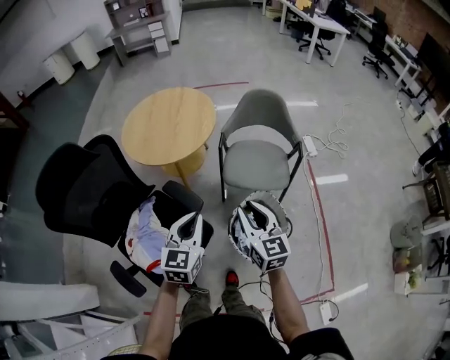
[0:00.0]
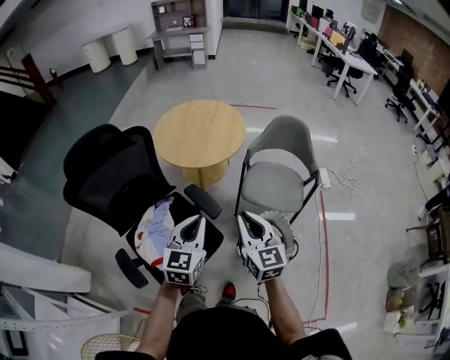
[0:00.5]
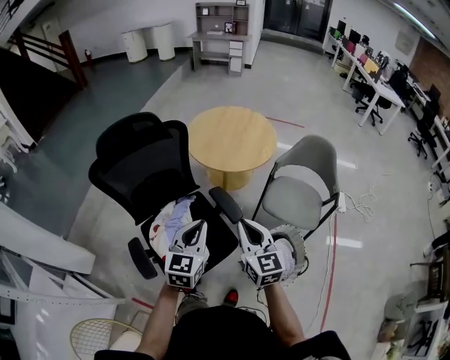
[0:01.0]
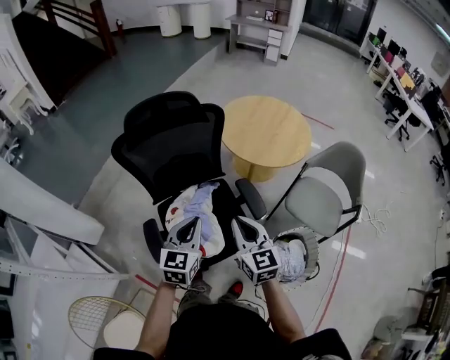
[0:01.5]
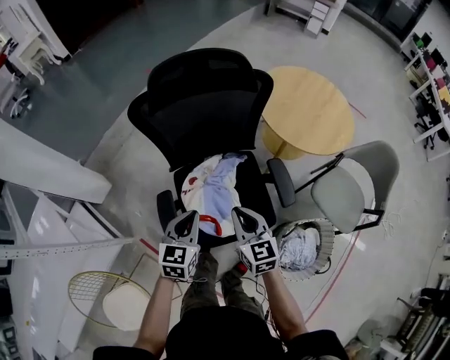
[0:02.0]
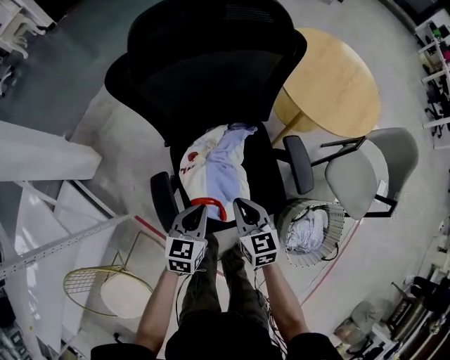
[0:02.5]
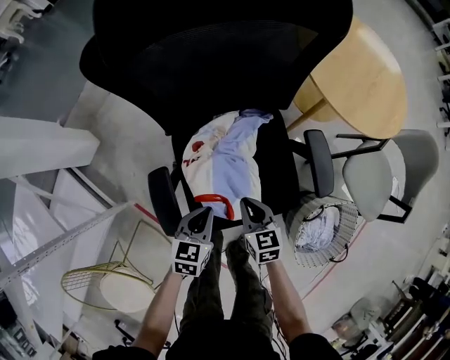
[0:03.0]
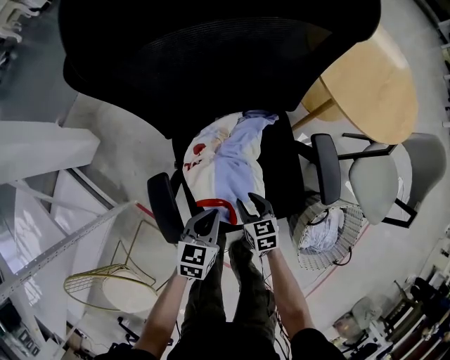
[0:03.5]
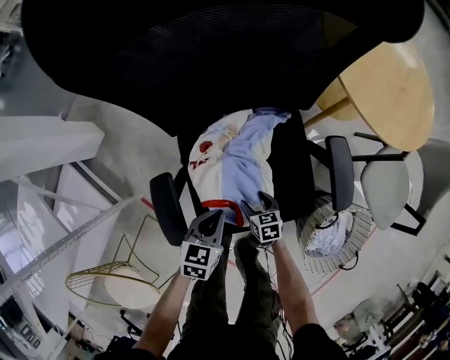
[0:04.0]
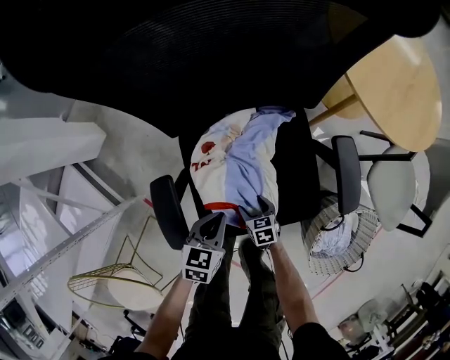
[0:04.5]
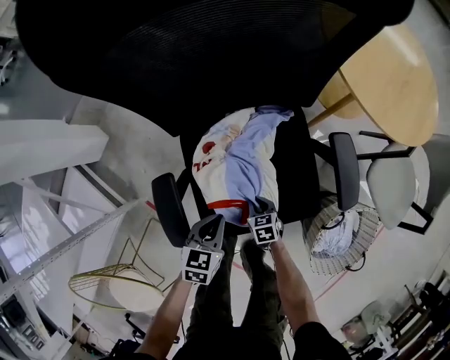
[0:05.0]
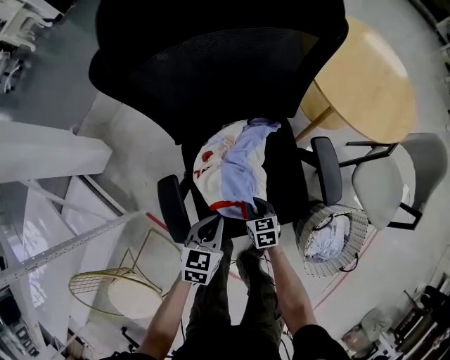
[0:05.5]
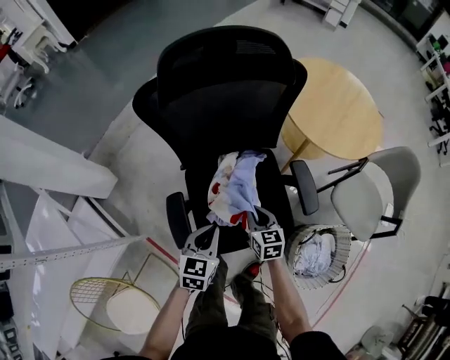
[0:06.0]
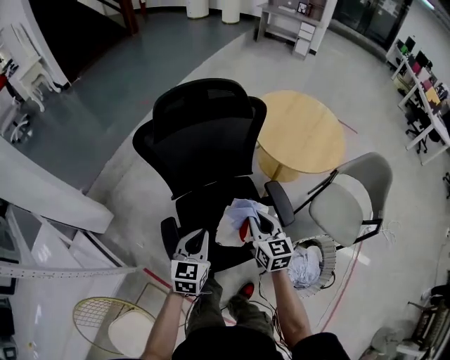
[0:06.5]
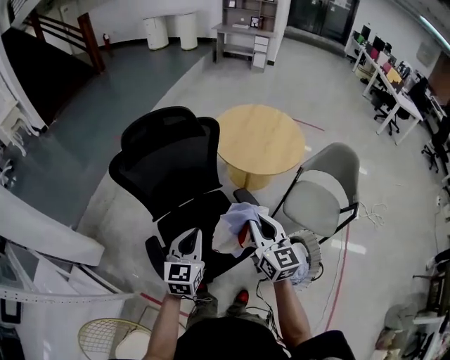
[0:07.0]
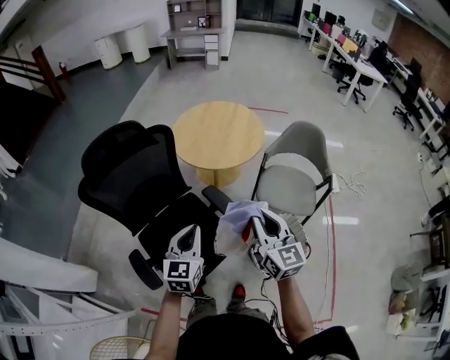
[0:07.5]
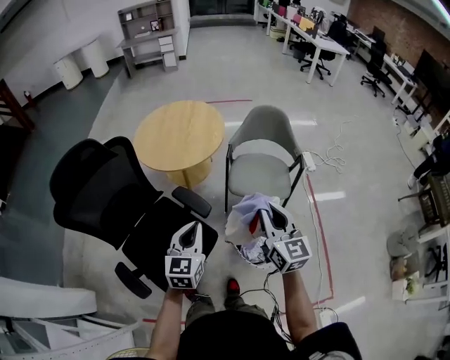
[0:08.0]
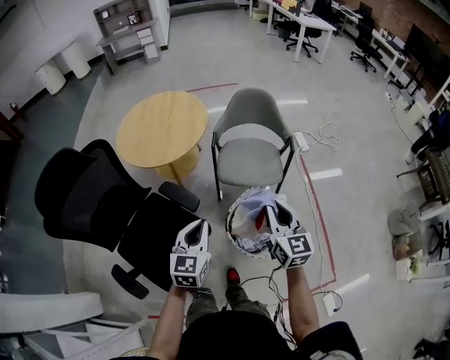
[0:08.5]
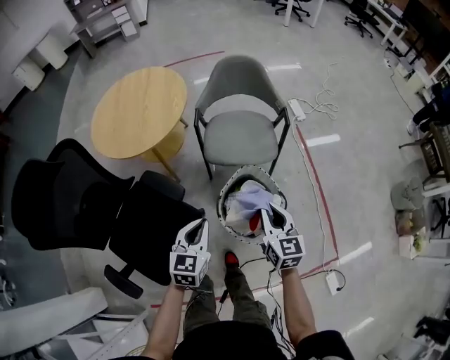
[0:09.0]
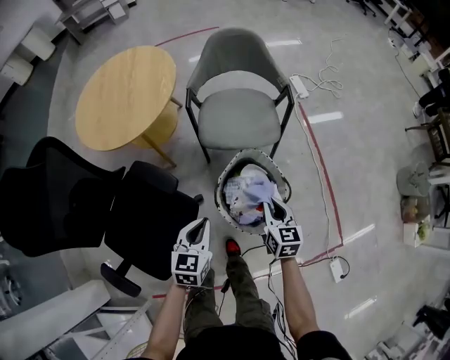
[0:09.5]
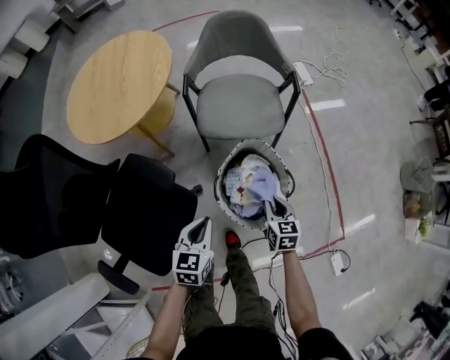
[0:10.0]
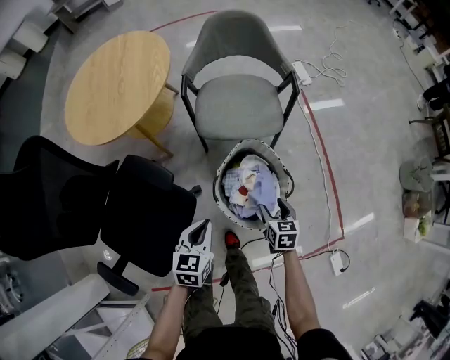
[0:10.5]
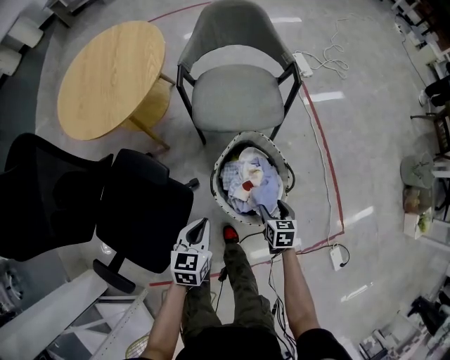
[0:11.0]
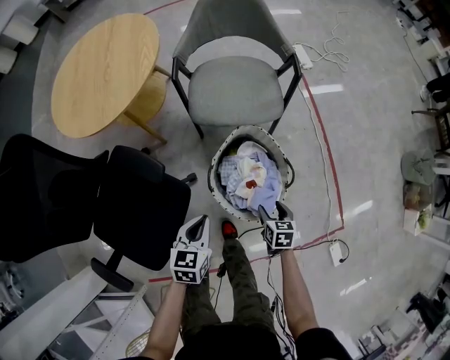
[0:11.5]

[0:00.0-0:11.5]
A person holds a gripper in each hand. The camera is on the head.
0:00.0 to 0:02.0: The right gripper ends up roughly 40 cm from where it was, and rotates about 40 degrees, while the left gripper shifts by approximately 40 cm, and swivels approximately 40 degrees.
0:02.0 to 0:04.0: The right gripper heads downward, covering roughly 50 cm, points its fingers some 30 degrees further downward, and opens. The left gripper shifts roughly 30 cm downward, and turns by some 20 degrees.
0:04.0 to 0:06.0: The grippers both shift upward by about 20 cm. The right gripper changes its angle by some 30 degrees, and closes.
0:06.0 to 0:07.5: The left gripper shifts approximately 30 cm upward and to the right, and turns by about 30 degrees. Meanwhile the right gripper goes roughly 50 cm upward and to the right, and angles its fingers upward, by some 30 degrees.
0:07.5 to 0:09.5: The right gripper heads downward, covering roughly 35 cm, and rotates about 40 degrees. The left gripper moves roughly 35 cm, and changes its angle by some 30 degrees.
0:09.5 to 0:11.5: The left gripper travels downward by roughly 10 cm. Meanwhile the right gripper is displaced downward by roughly 20 cm, changes its angle by roughly 30 degrees, and opens.

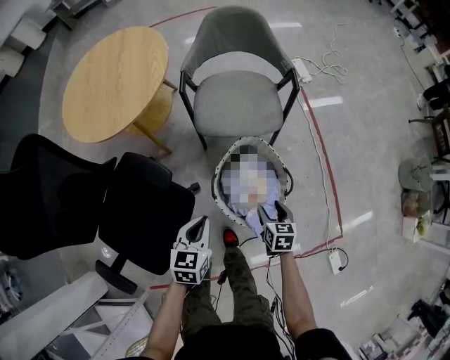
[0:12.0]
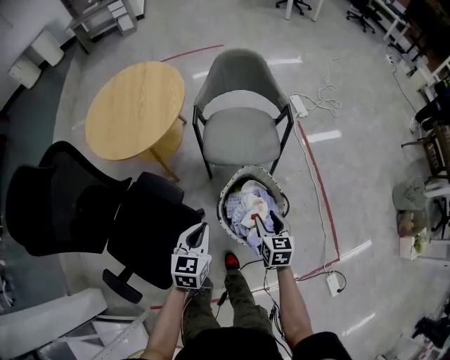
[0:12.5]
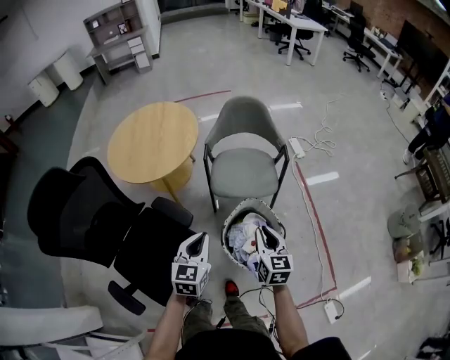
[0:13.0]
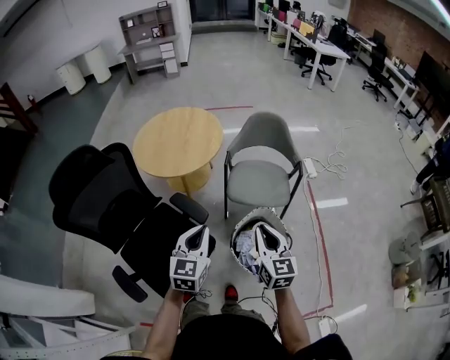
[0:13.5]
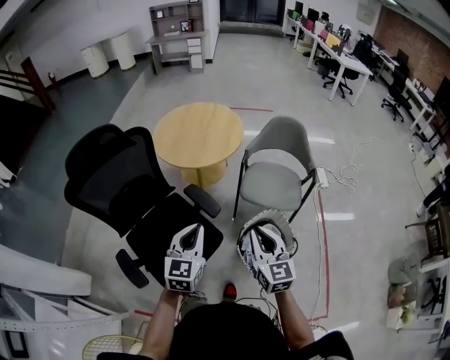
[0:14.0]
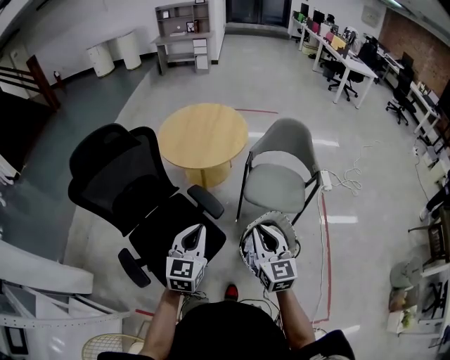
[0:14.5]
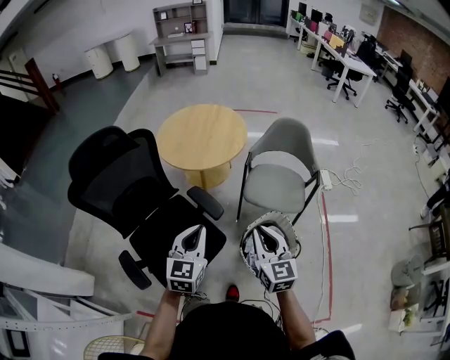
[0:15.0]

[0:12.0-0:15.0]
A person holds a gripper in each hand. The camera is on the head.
0:12.0 to 0:13.5: Both grippers move upward, approximately 30 cm. The left gripper changes its angle by roughly 30 degrees. Meanwhile the right gripper points its fingers about 40 degrees further upward, and closes its fingers.
0:13.5 to 0:15.0: Both grippers move to the left, about 5 cm.

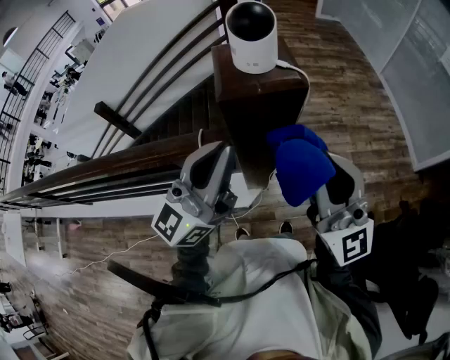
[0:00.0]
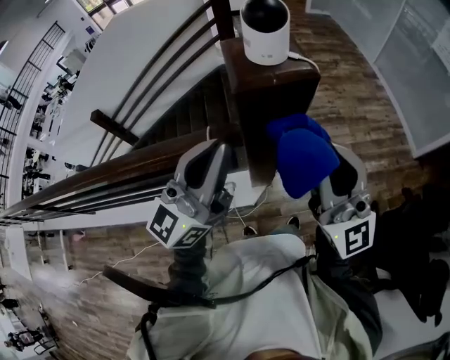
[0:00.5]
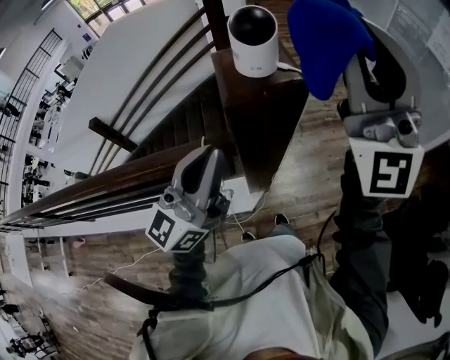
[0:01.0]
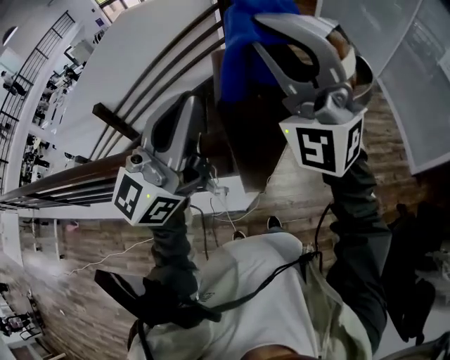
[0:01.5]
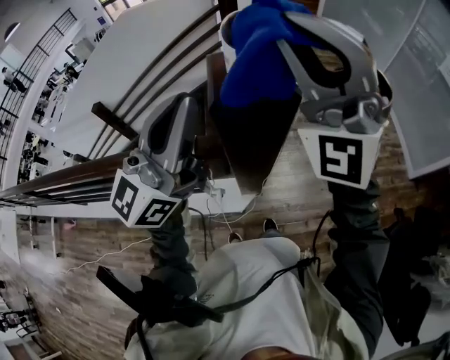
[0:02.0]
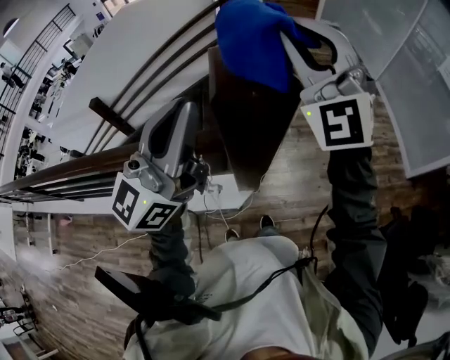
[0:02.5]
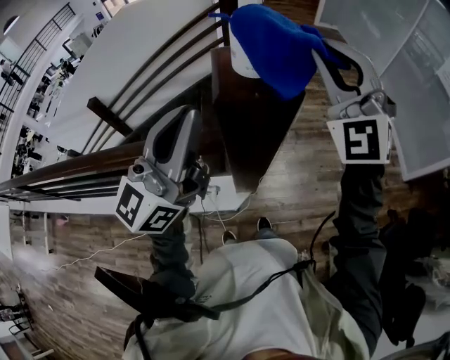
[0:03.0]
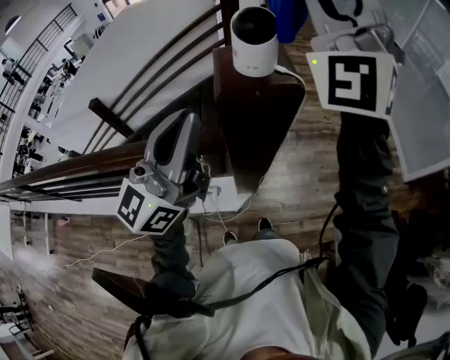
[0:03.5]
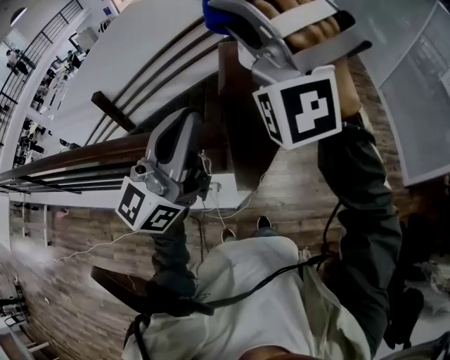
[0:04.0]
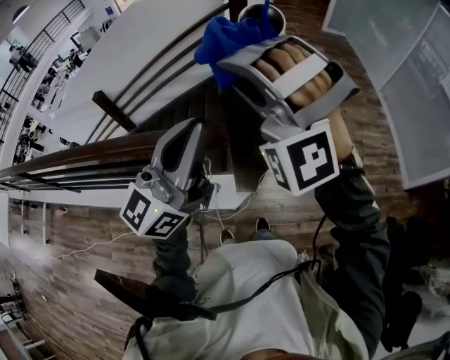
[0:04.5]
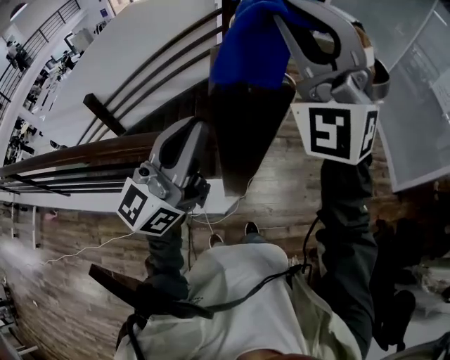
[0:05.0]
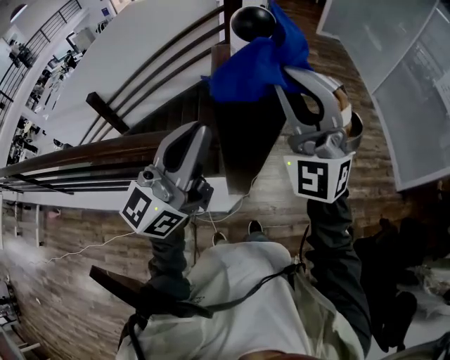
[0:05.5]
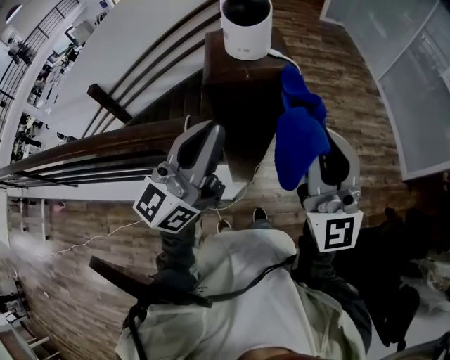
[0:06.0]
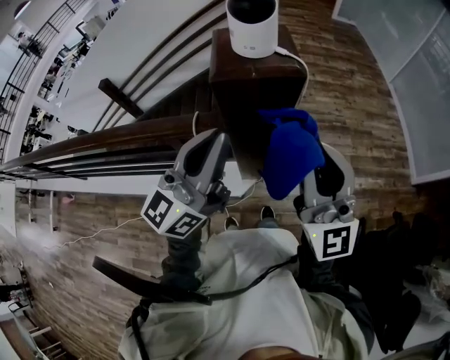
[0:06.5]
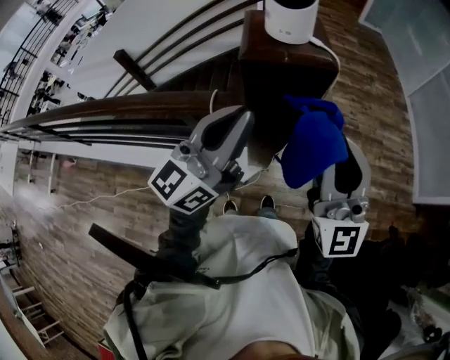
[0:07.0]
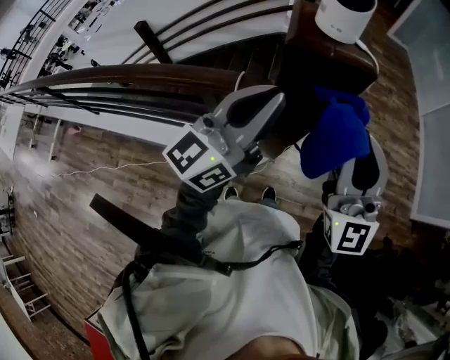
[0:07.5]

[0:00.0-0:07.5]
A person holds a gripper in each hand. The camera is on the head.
0:00.0 to 0:02.0: The right gripper moves upward, forward and to the left, roughly 20 cm, and rolls counterclockwise, seen from behind, by roughly 50 degrees; the left gripper goes some 10 cm upward.
0:02.0 to 0:04.0: The right gripper moves to the left, about 10 cm, and rotates some 40 degrees. The left gripper ends up approximately 5 cm from where it was.
0:04.0 to 0:05.5: The right gripper goes up and down, roughly 10 cm each way, reversing 2 times, and turns by about 40 degrees.
0:05.5 to 0:07.5: The right gripper goes some 10 cm backward and downward, and rolls clockwise, seen from behind, by roughly 50 degrees.

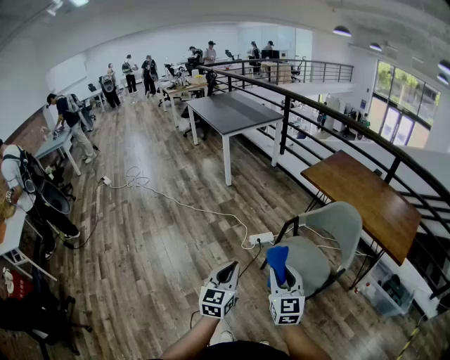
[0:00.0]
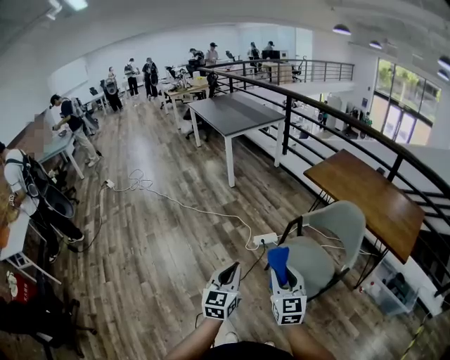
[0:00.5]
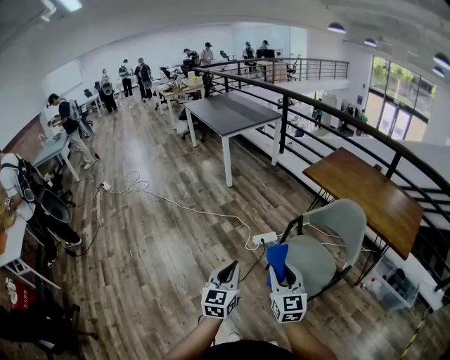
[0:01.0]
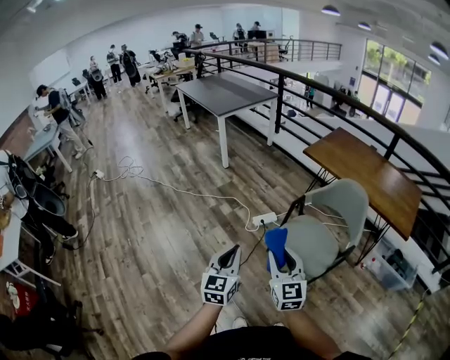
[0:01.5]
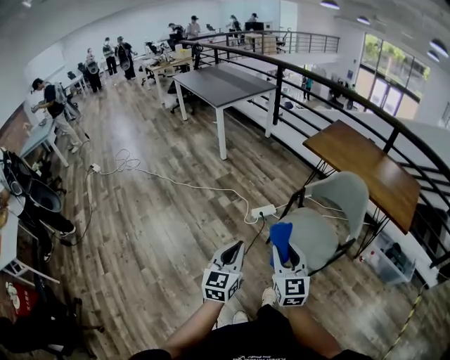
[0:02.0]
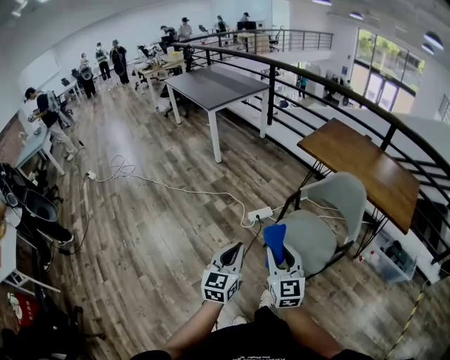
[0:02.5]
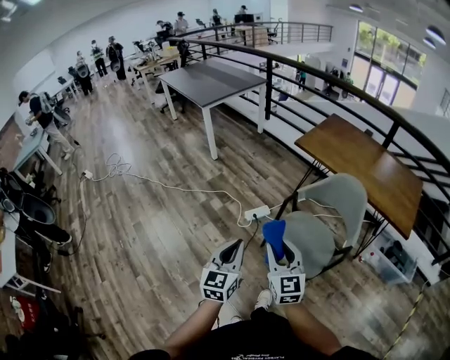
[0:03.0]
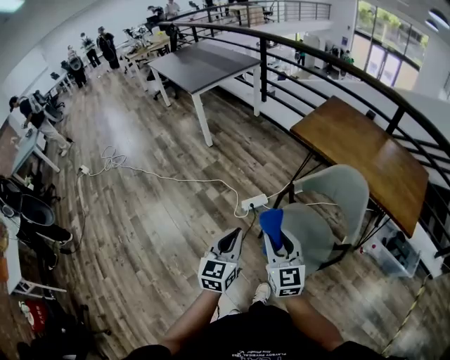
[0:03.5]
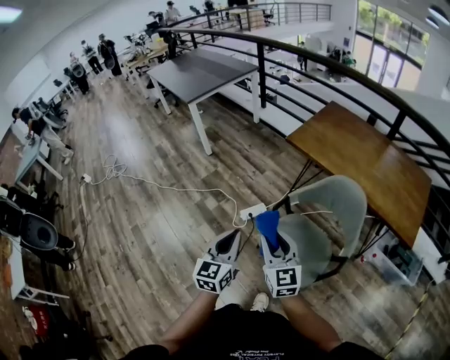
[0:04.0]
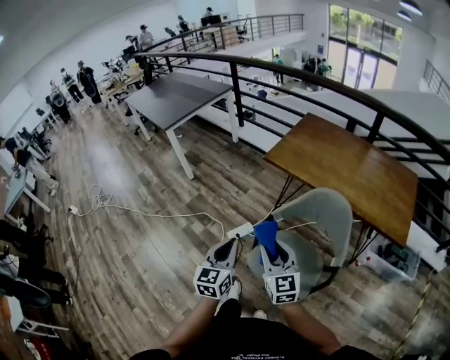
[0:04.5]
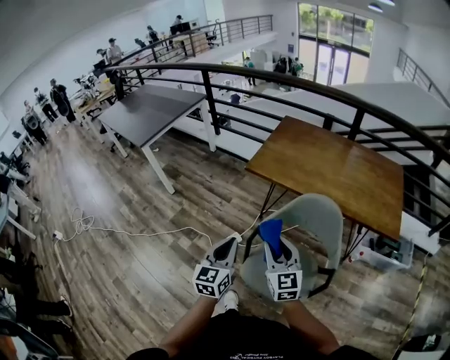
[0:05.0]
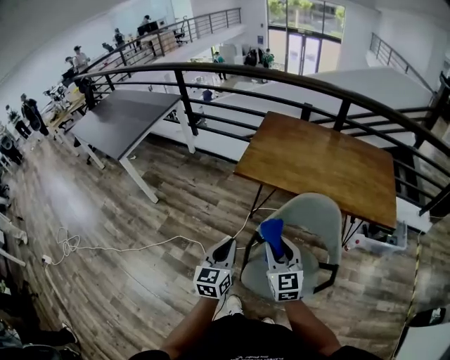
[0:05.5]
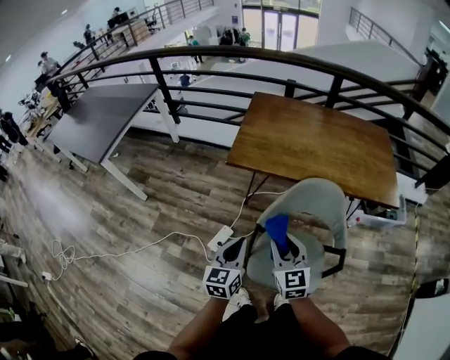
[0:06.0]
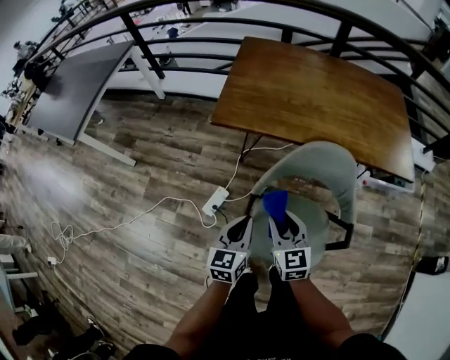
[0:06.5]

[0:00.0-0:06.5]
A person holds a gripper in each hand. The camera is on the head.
0:00.0 to 0:02.0: The grippers both shift to the left by some 10 cm.
0:02.0 to 0:04.5: Both grippers move forward and to the right, roughly 35 cm.
0:04.5 to 0:06.5: The left gripper moves some 25 cm, and turns by approximately 30 degrees. Meanwhile the right gripper moves roughly 25 cm, and swivels about 30 degrees.
